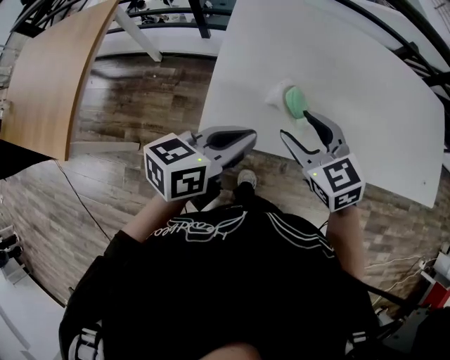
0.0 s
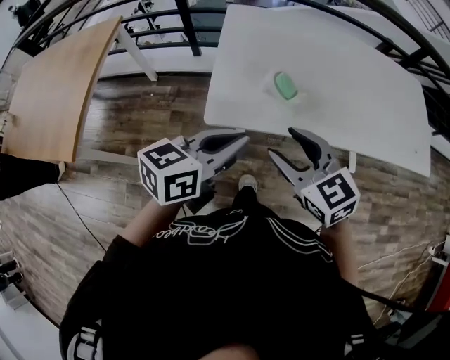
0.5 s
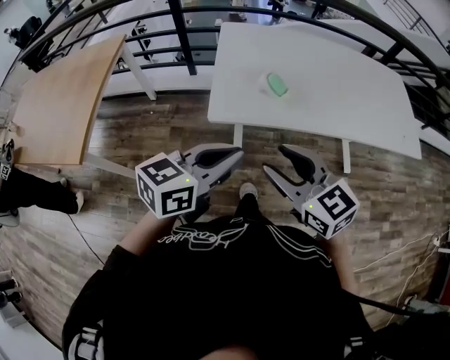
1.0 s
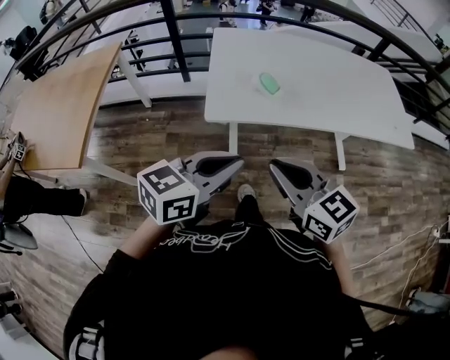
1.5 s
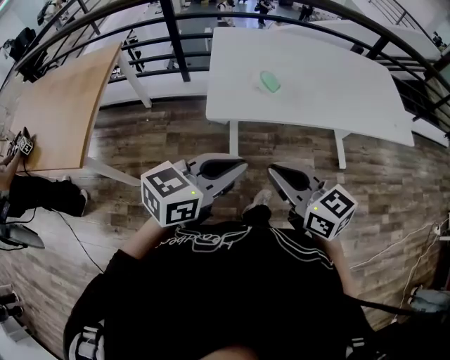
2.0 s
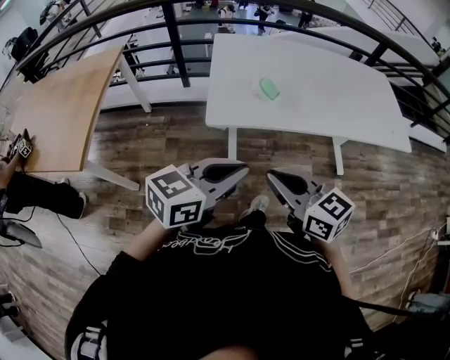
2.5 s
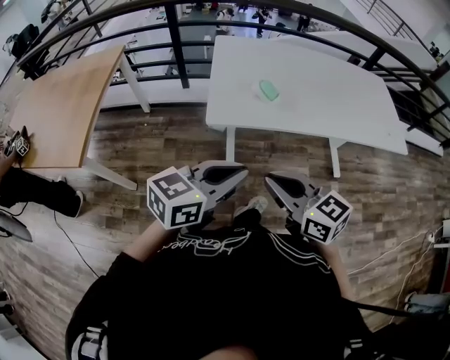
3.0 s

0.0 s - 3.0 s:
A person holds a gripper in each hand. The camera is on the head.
0.0 s - 1.5 s: Both grippers move backward, approximately 30 cm. The right gripper rotates some 20 degrees, and closes. Meanwhile the left gripper rotates some 20 degrees.
1.5 s - 3.0 s: There are only small adjustments of the grippers.

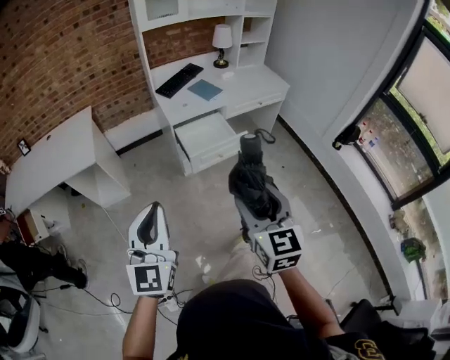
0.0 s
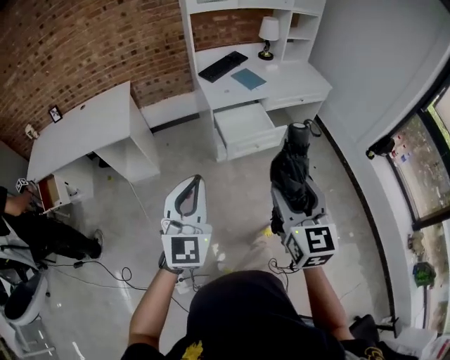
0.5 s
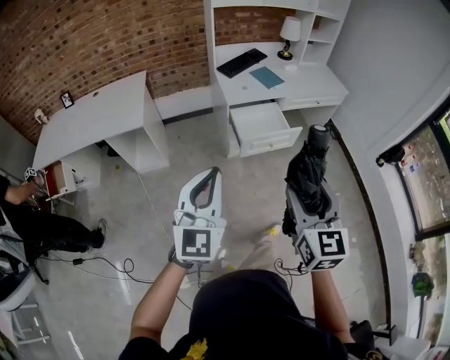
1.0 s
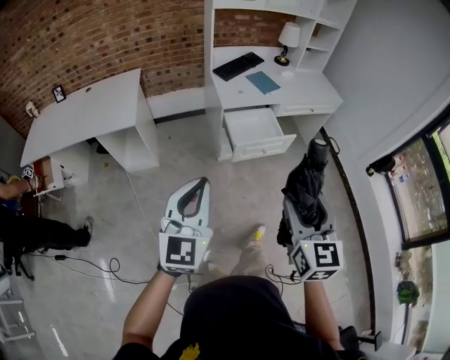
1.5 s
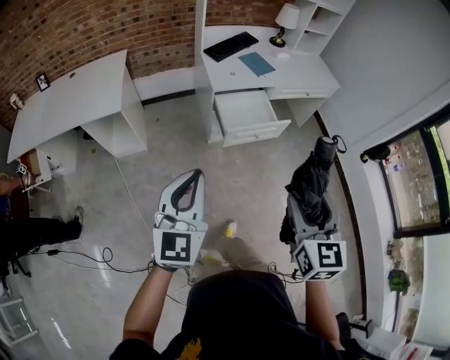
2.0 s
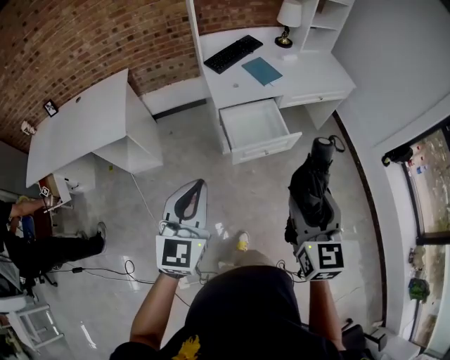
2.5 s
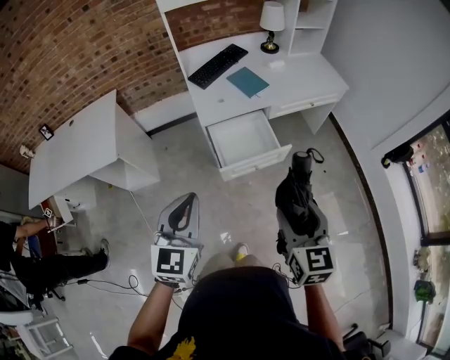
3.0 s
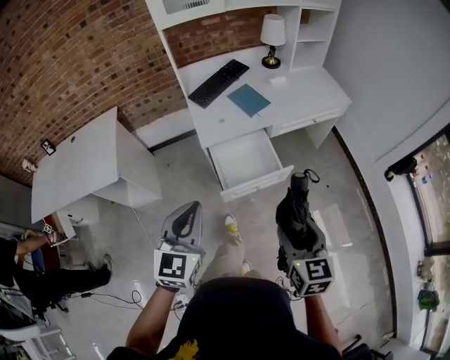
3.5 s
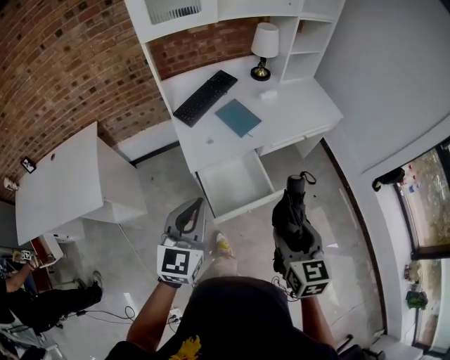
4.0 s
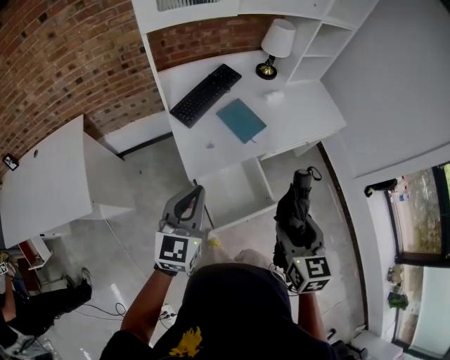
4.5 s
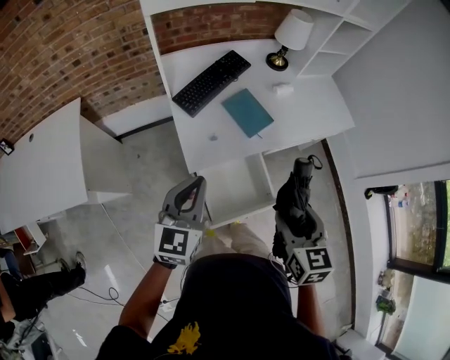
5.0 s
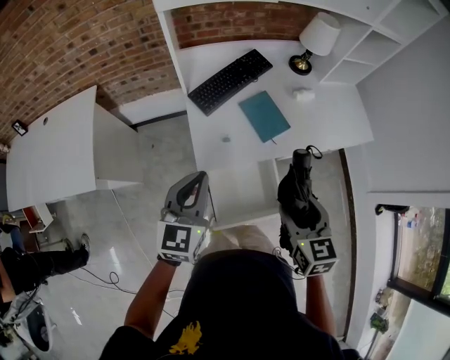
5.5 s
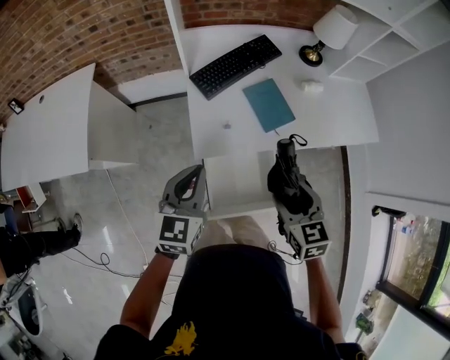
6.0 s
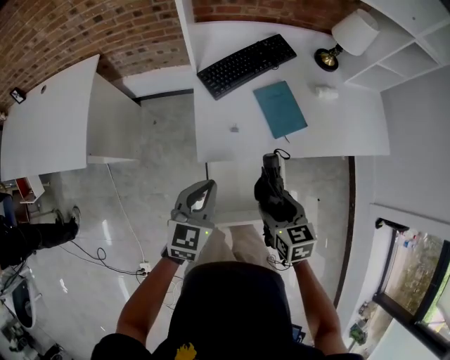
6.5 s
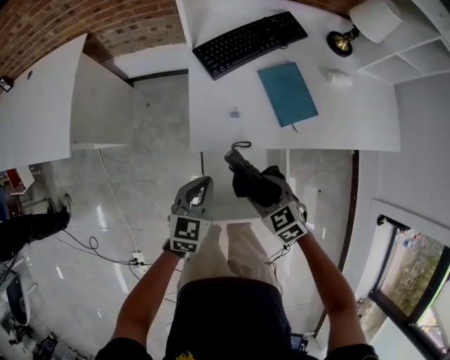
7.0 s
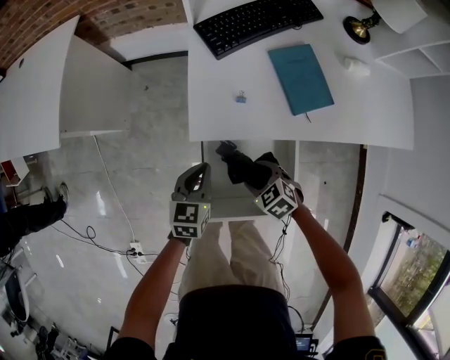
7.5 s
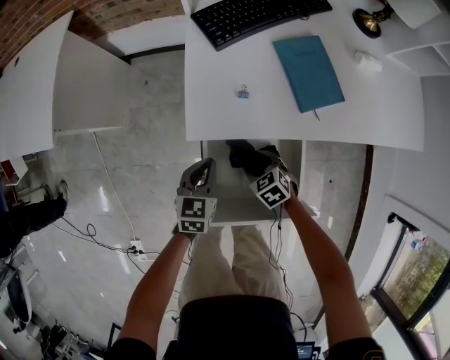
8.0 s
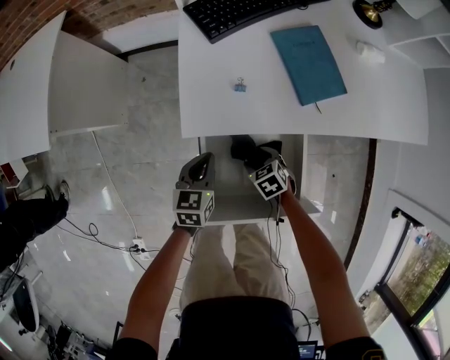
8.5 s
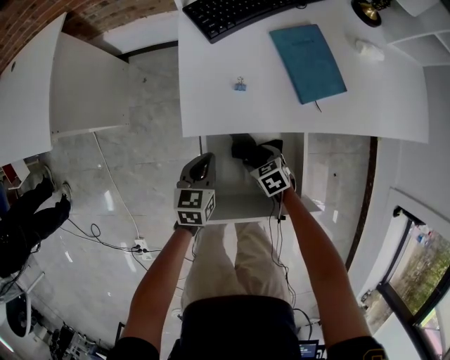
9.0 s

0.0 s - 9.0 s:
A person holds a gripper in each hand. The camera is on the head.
0.0 s - 2.0 s: The left gripper moves forward, some 5 cm.
2.0 s - 4.5 s: The pair of grippers is taken forward, roughly 50 cm.
4.5 s - 7.0 s: Both grippers move downward, some 30 cm. The left gripper rotates about 30 degrees, while the right gripper changes its angle by approximately 60 degrees.
7.0 s - 9.0 s: The grippers both shift downward by about 20 cm.

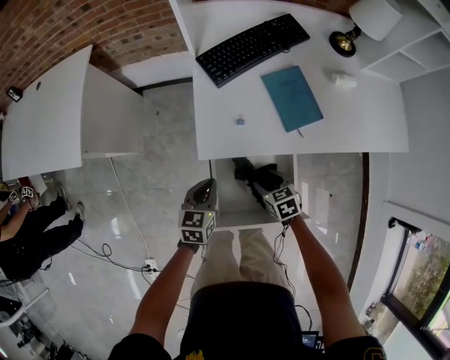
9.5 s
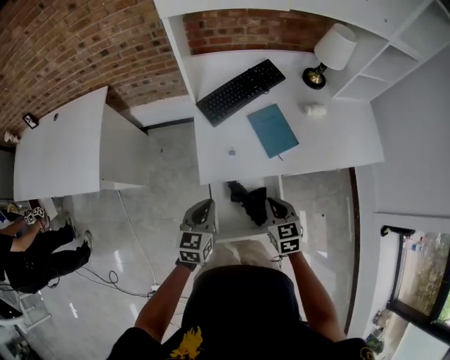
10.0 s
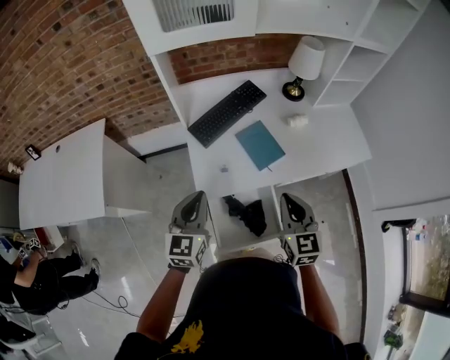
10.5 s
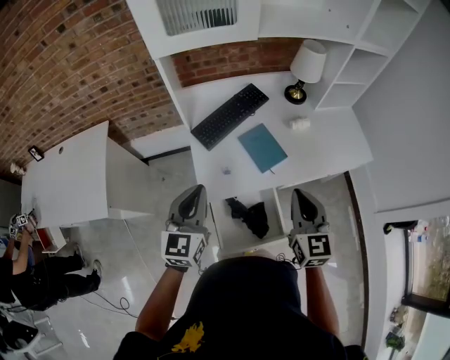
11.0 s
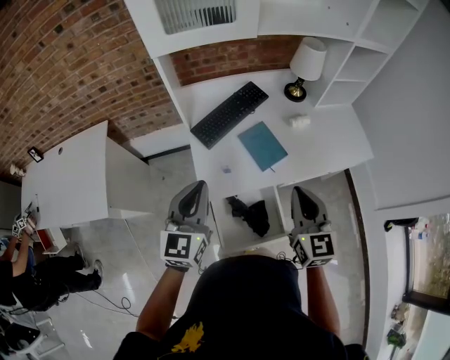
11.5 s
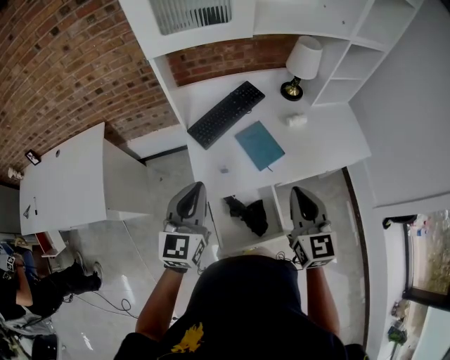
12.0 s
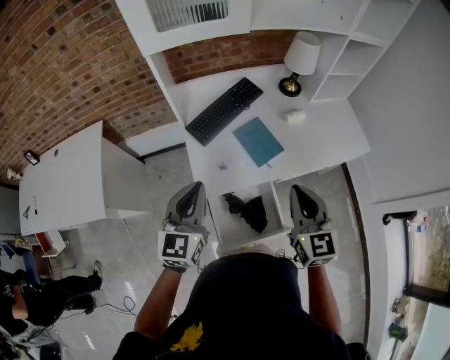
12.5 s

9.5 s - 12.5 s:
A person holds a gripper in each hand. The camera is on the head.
9.5 s - 11.0 s: Both grippers travel together upward, approximately 40 cm. The left gripper rotates roughly 30 degrees. Meanwhile the right gripper angles its fingers upward, by approximately 40 degrees, and closes its fingers.
11.0 s - 12.5 s: The grippers stay close to where they were, moving slightly.

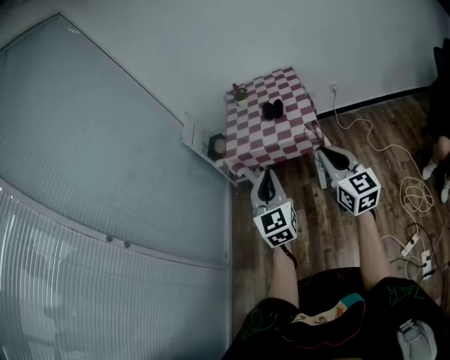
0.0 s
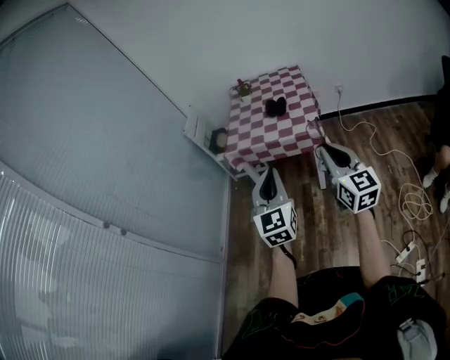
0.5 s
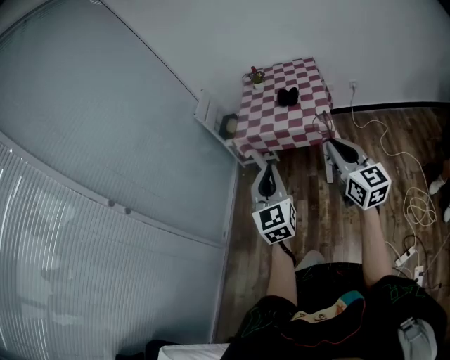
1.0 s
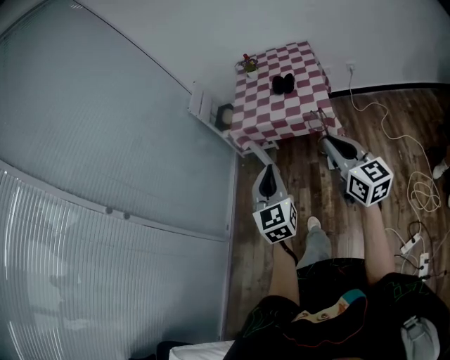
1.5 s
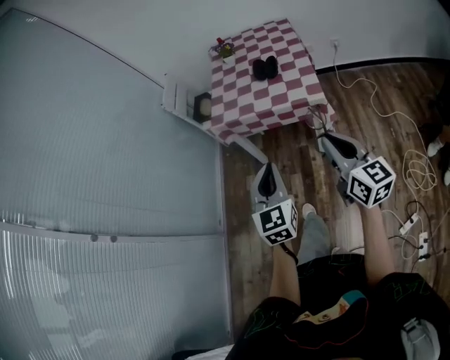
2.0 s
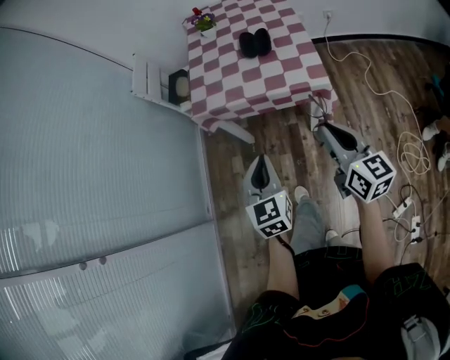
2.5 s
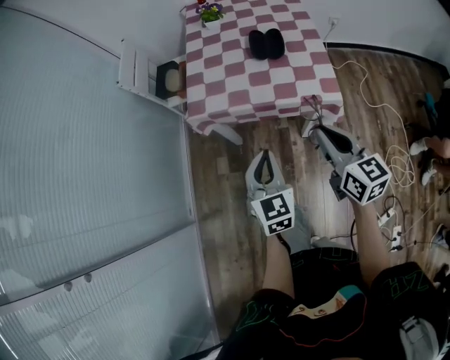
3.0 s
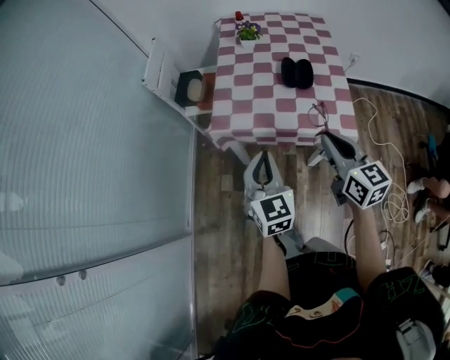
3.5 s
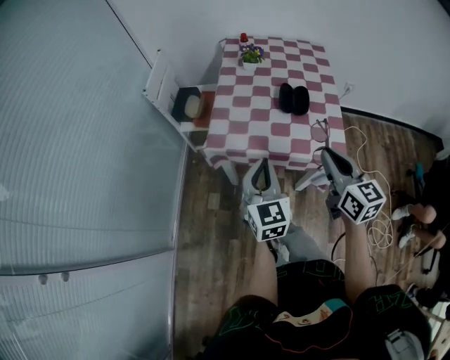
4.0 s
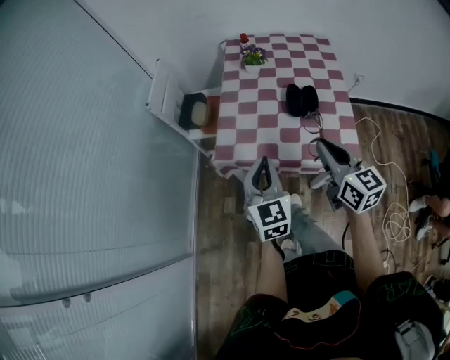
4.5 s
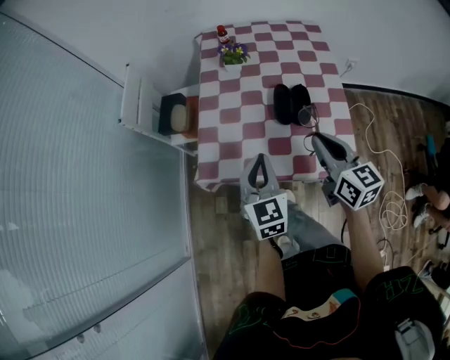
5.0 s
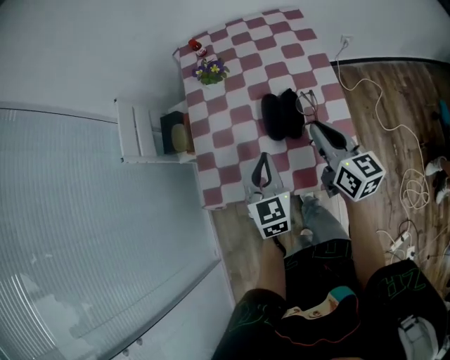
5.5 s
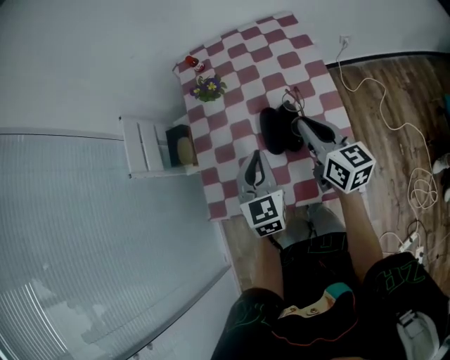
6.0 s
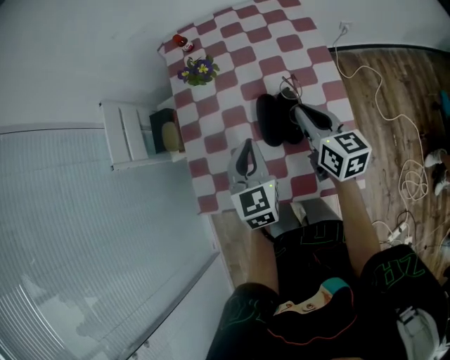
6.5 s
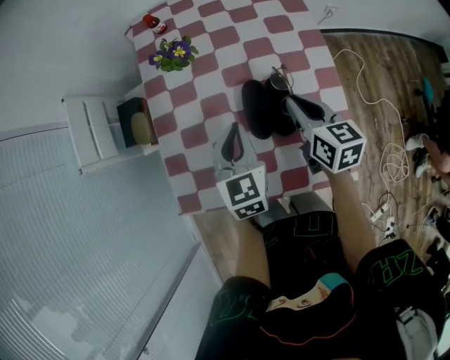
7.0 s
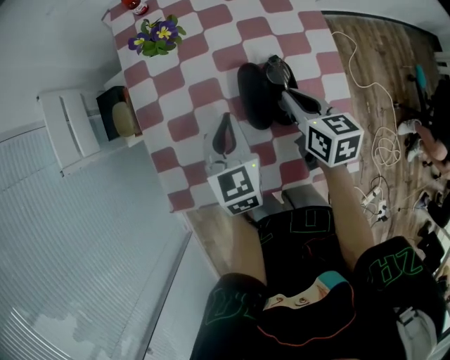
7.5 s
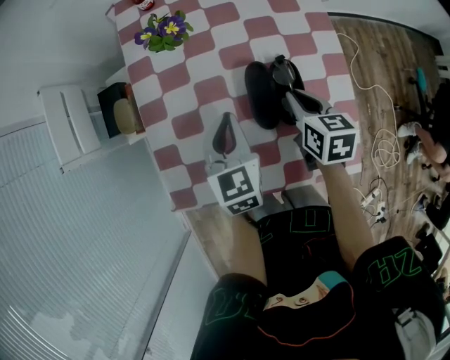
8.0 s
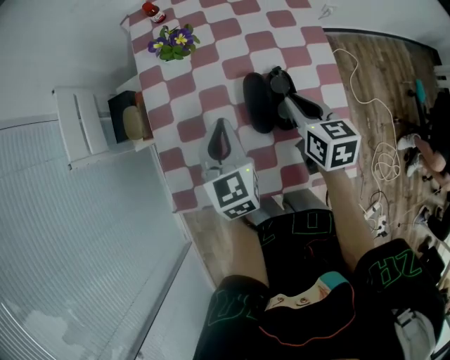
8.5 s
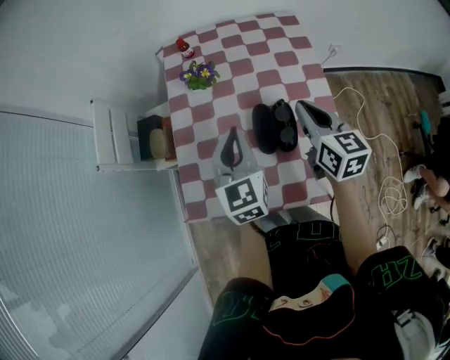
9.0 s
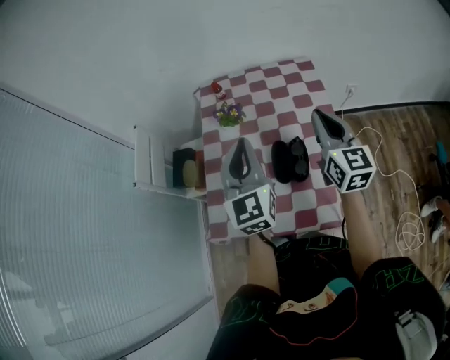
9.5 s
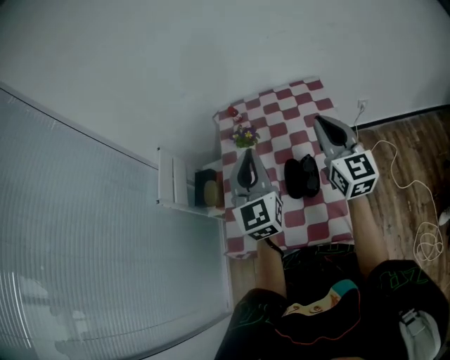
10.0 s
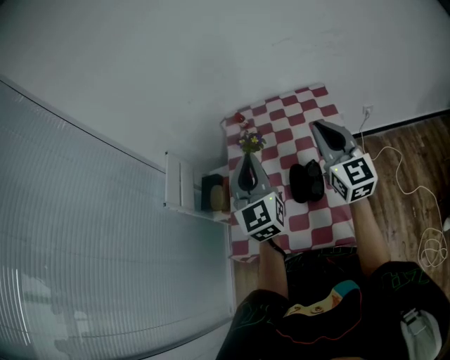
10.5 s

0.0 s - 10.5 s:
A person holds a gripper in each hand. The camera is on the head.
0.0 s - 2.0 s: The right gripper travels downward and forward by approximately 10 cm, while the left gripper travels downward by some 10 cm.
2.0 s - 4.0 s: The grippers both shift forward by approximately 30 cm.
4.0 s - 6.5 s: Both grippers move forward, roughly 30 cm.
6.5 s - 8.5 s: The right gripper goes approximately 5 cm downward, while the left gripper moves approximately 5 cm.
8.5 s - 10.5 s: The two grippers go about 30 cm upward. The left gripper angles its fingers upward, by about 30 degrees. The right gripper points its fingers some 40 degrees further upward.

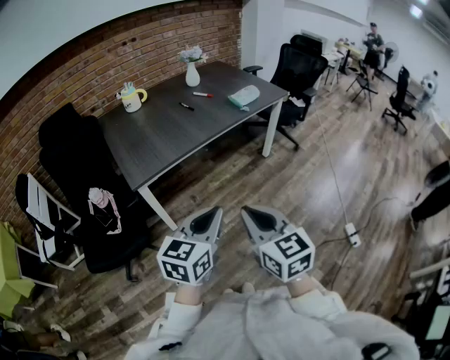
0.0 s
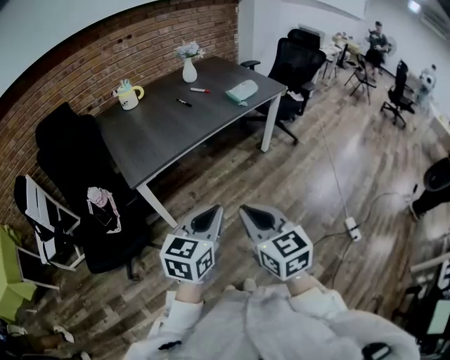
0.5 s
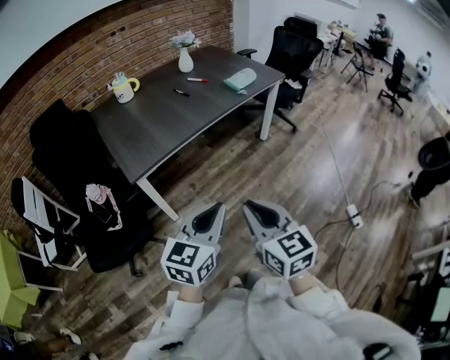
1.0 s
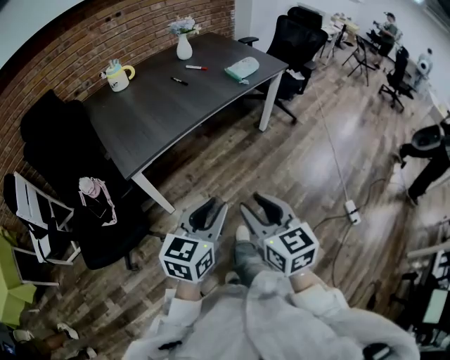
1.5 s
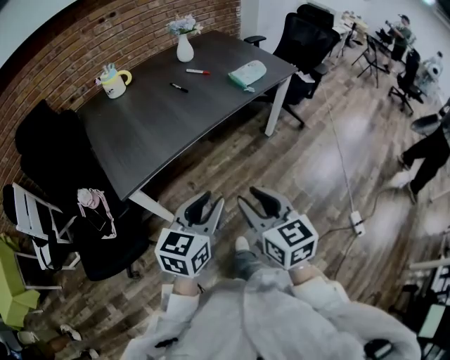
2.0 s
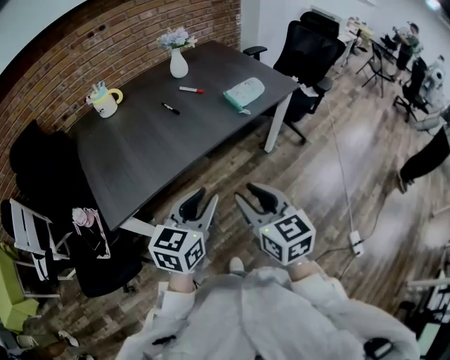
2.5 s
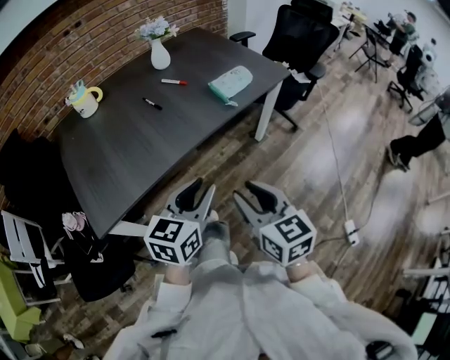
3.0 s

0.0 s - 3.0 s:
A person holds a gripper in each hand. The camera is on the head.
0.0 s - 1.5 s: The left gripper changes place by approximately 5 cm, and opens its fingers, while the right gripper goes approximately 5 cm downward, and opens.
1.5 s - 3.0 s: The grippers both shift forward by roughly 30 cm.
